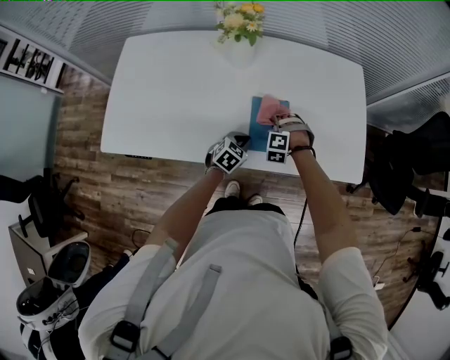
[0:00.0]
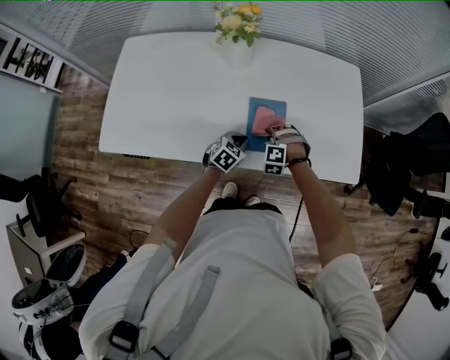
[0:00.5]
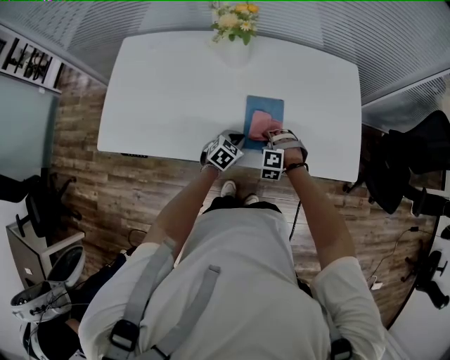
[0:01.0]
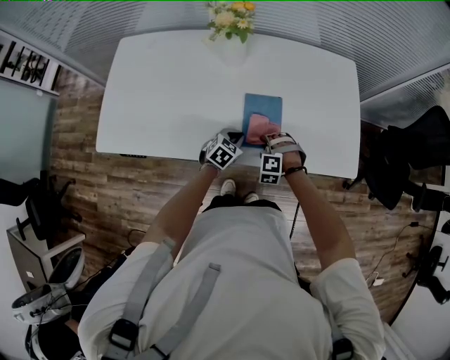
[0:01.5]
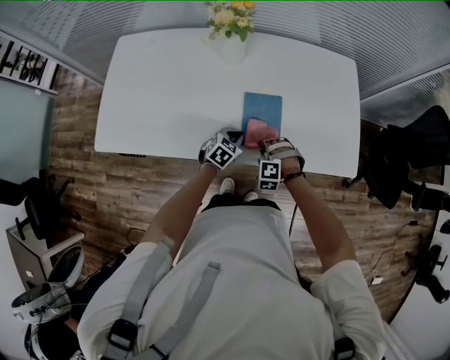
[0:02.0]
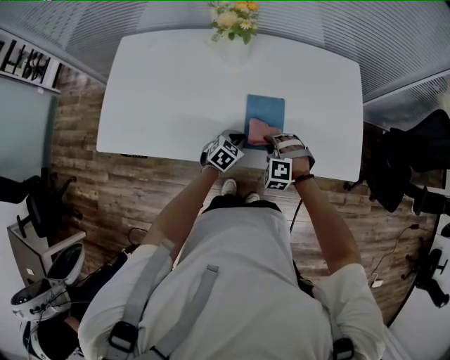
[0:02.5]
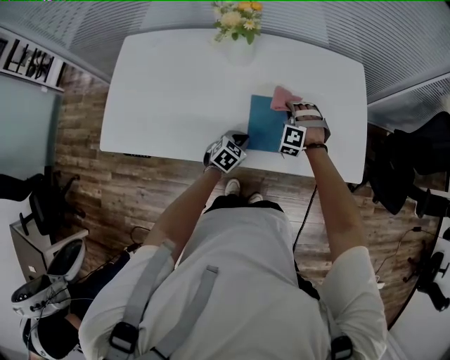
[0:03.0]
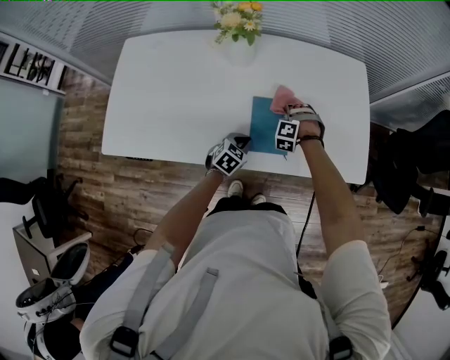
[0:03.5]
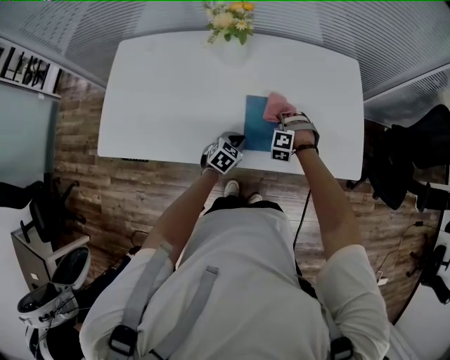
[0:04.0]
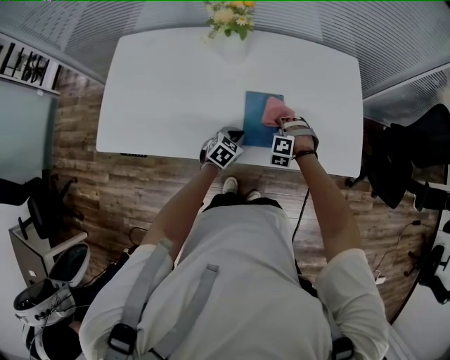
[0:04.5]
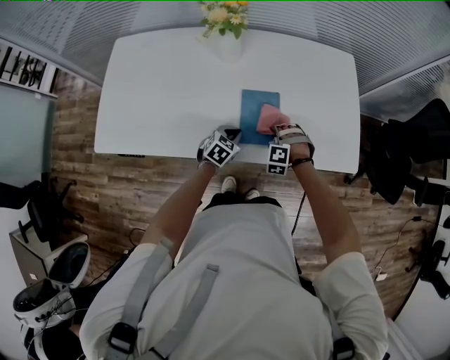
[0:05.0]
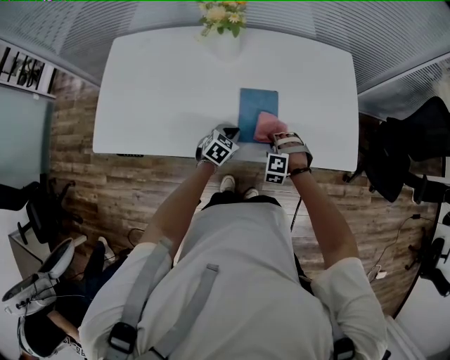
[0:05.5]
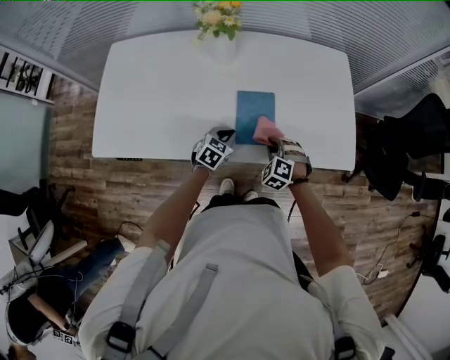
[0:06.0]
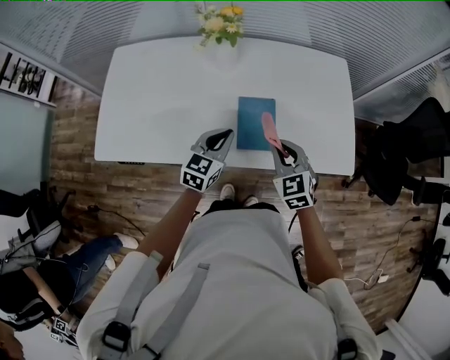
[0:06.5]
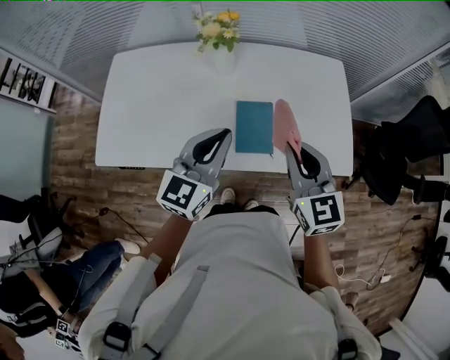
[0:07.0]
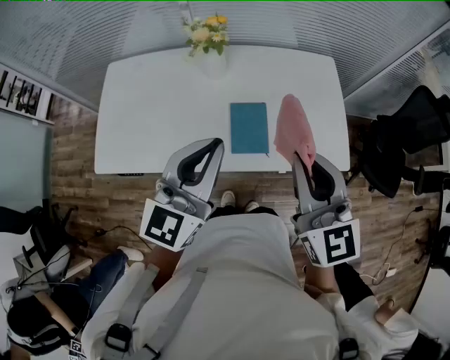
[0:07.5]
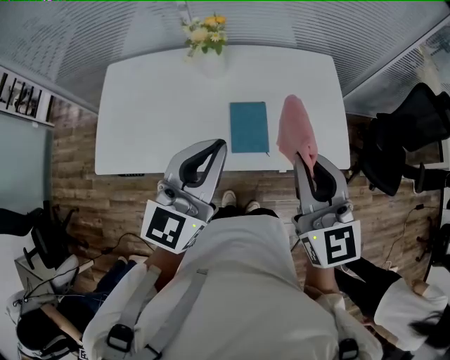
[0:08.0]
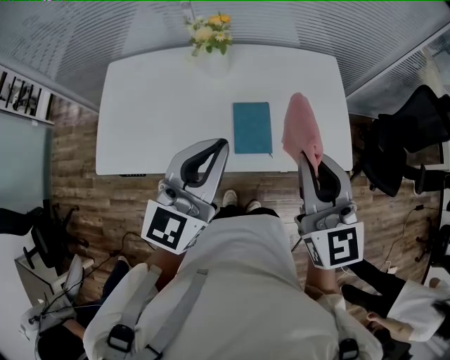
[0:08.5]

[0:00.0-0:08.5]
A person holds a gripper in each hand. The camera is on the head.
0:00.0 to 0:02.0: The right gripper heads backward, covering about 10 cm.
0:02.0 to 0:04.0: The right gripper shifts about 15 cm forward.
0:04.0 to 0:06.5: The left gripper heads upward, covering some 20 cm, and swivels some 30 degrees, while the right gripper moves upward and backward, approximately 25 cm, and twists some 60 degrees clockwise, seen from behind.
0:06.5 to 0:08.5: Both grippers move upward, approximately 25 cm. The right gripper changes its angle by some 30 degrees, while the left gripper rotates roughly 30 degrees.

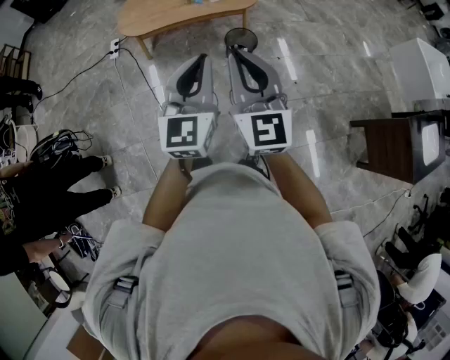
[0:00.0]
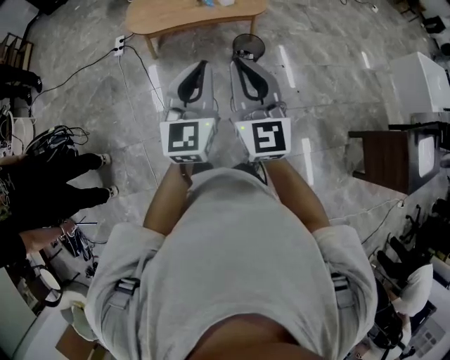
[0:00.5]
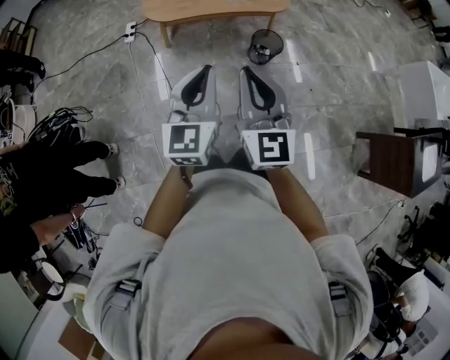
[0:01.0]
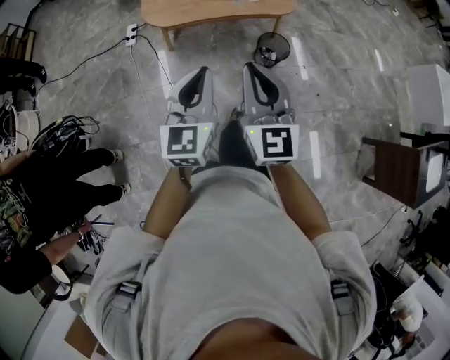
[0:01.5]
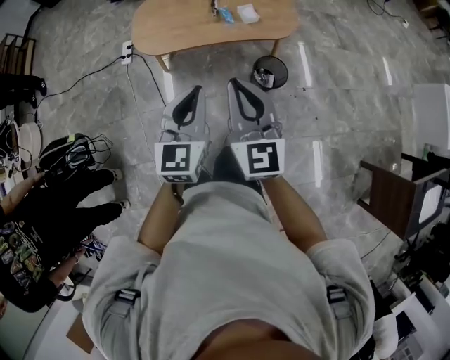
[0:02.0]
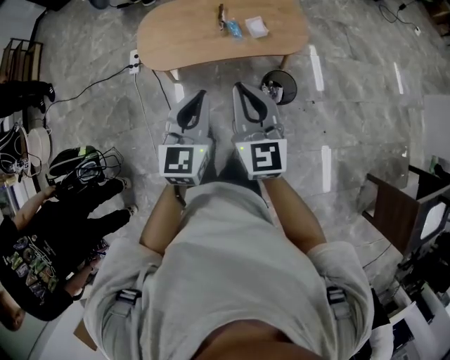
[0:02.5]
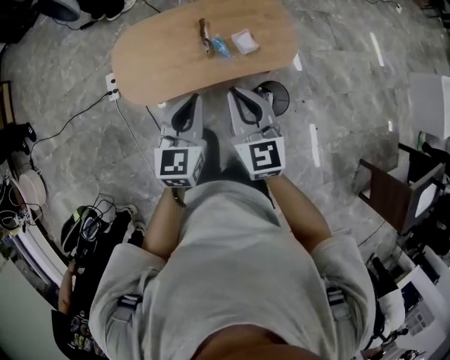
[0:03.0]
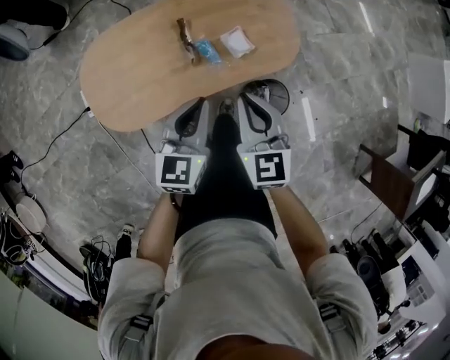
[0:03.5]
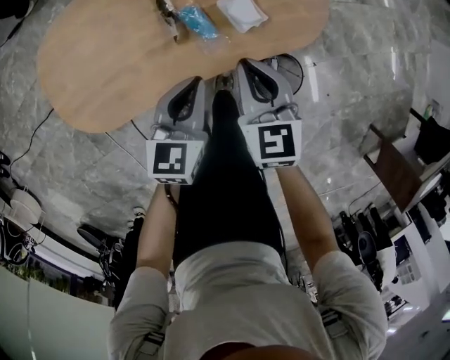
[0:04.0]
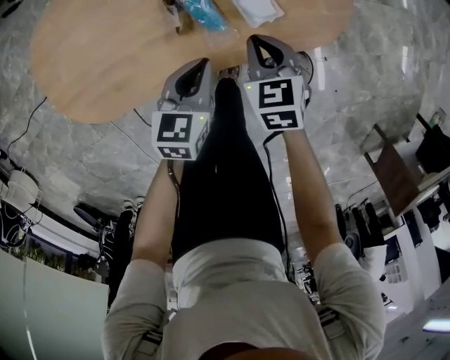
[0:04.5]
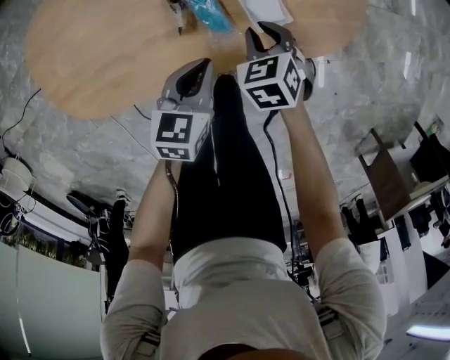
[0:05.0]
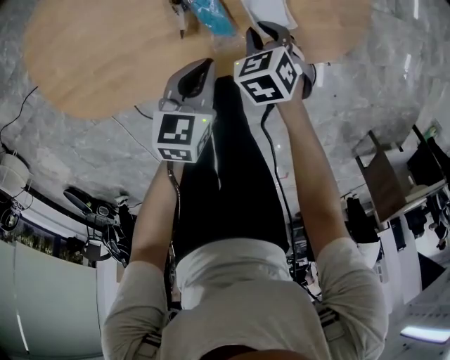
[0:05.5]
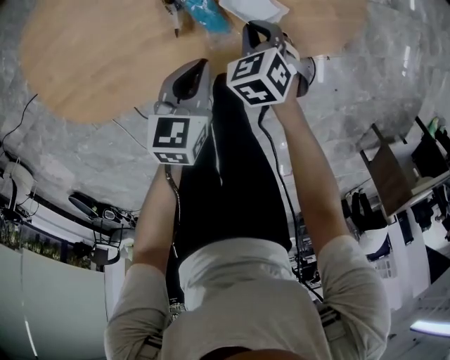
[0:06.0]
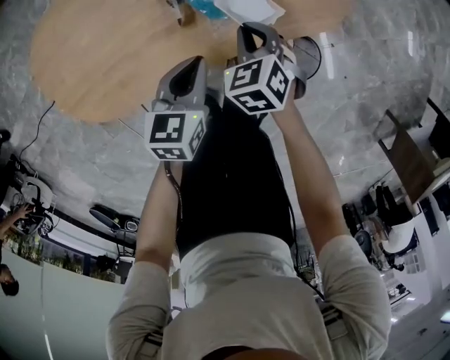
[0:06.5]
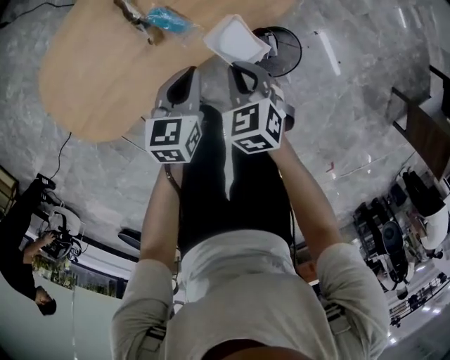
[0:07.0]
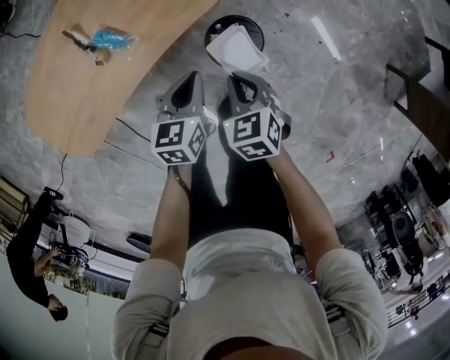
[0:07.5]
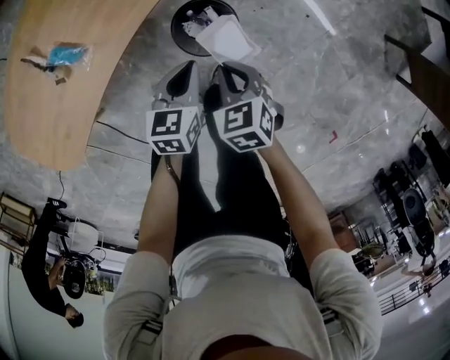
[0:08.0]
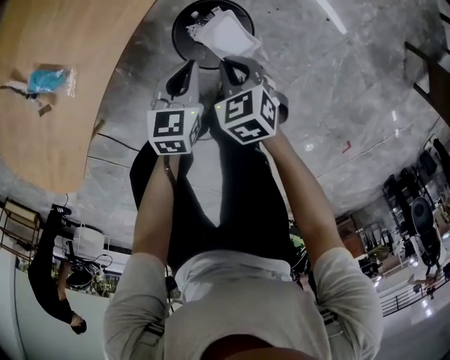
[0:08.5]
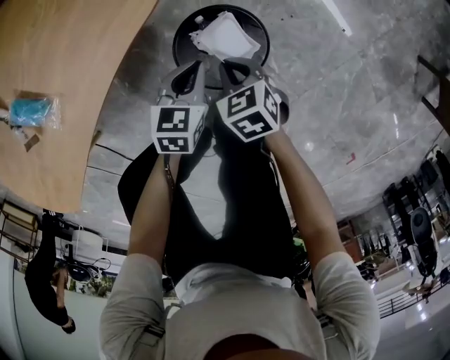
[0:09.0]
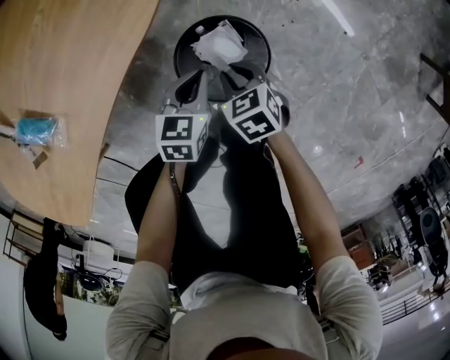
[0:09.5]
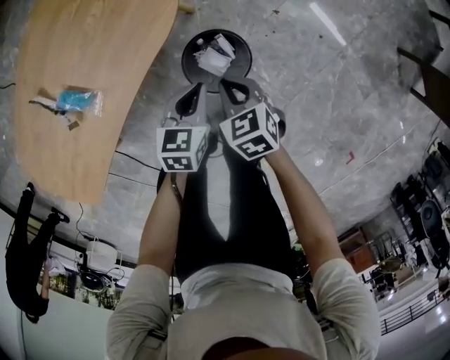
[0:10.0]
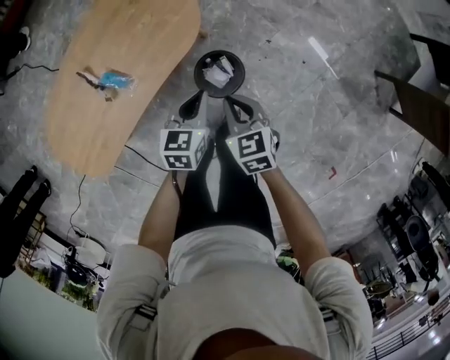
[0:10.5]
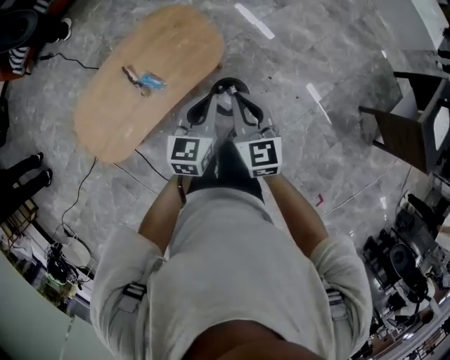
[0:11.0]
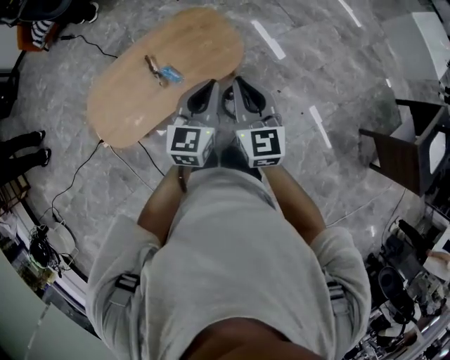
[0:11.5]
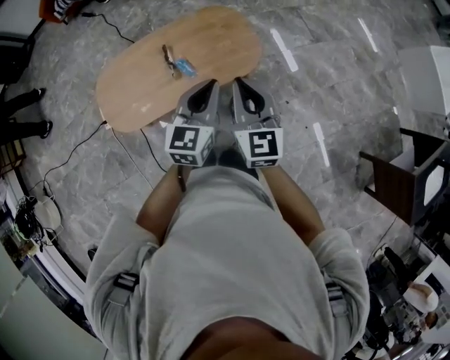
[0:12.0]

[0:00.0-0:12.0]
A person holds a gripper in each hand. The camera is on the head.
0:00.0 to 0:02.0: The right gripper moves forward, about 30 cm. Meanwhile the left gripper moves forward and to the left, approximately 30 cm.
0:02.0 to 0:04.0: The two grippers travel together, forward, approximately 40 cm. The grippers both shift downward by about 35 cm. The right gripper angles its fingers downward, by approximately 30 degrees; the left gripper turns by some 30 degrees.
0:04.0 to 0:06.0: The left gripper travels downward by roughly 10 cm, while the right gripper is displaced downward by roughly 20 cm, and swivels about 40 degrees.
0:06.0 to 0:08.0: The left gripper heads to the right, covering approximately 30 cm, and turns by roughly 30 degrees. Meanwhile the right gripper shifts approximately 35 cm to the right and backward, and changes its angle by roughly 40 degrees.
0:08.0 to 0:10.0: Both grippers travel together forward, about 5 cm. The right gripper goes downward and returns, approximately 25 cm each way, while the left gripper reaches roughly 25 cm downward, then returns.
0:10.0 to 0:12.0: The grippers both shift upward by approximately 50 cm. The right gripper tilts its fingers about 50 degrees upward, while the left gripper rotates approximately 40 degrees.

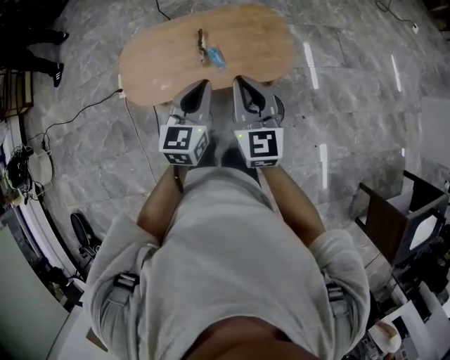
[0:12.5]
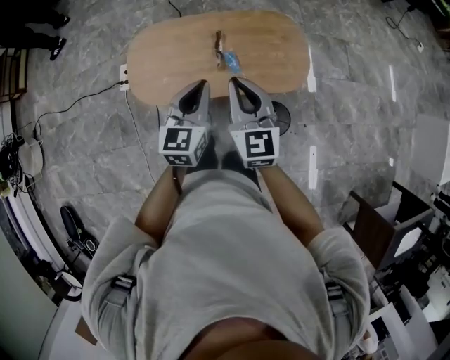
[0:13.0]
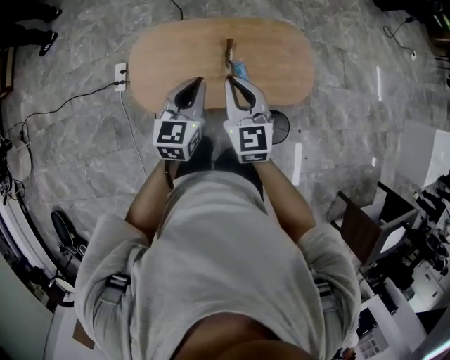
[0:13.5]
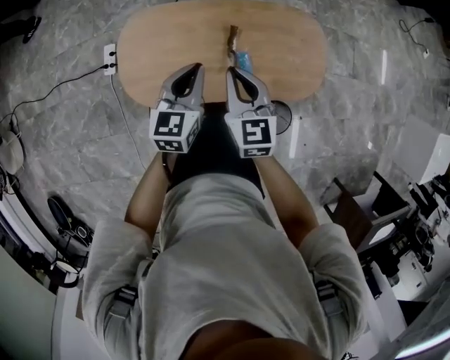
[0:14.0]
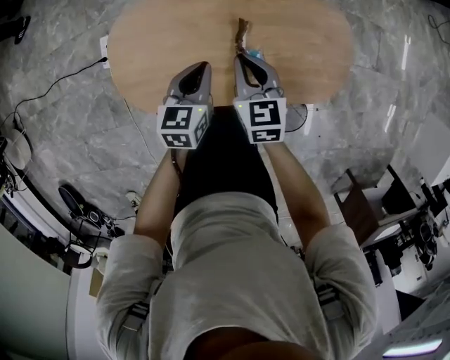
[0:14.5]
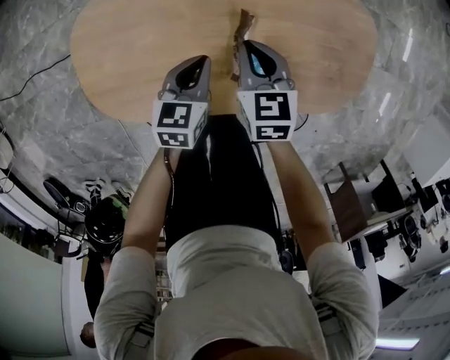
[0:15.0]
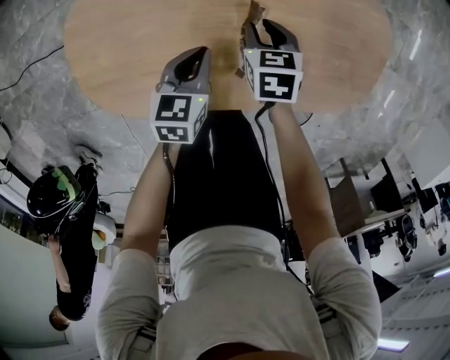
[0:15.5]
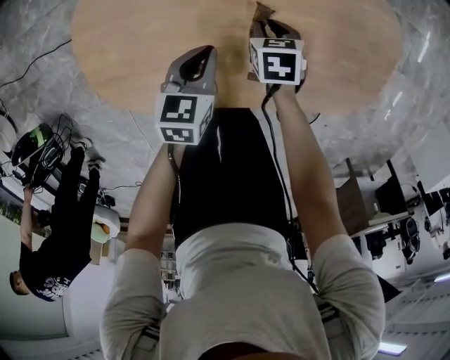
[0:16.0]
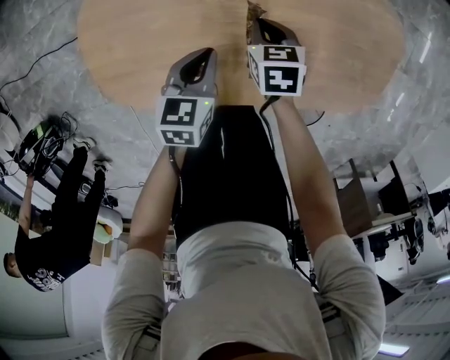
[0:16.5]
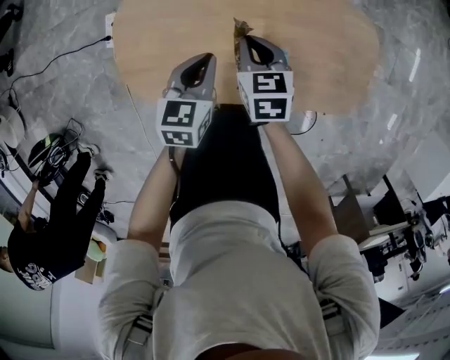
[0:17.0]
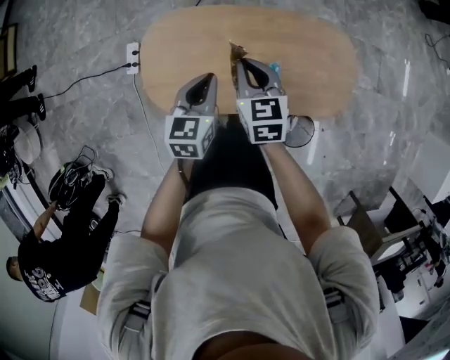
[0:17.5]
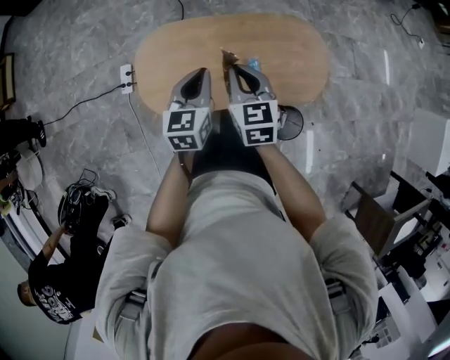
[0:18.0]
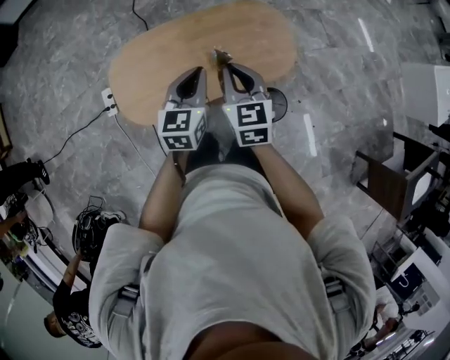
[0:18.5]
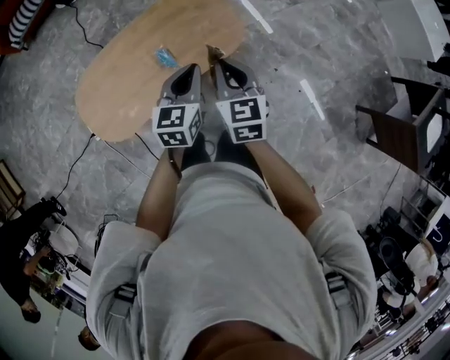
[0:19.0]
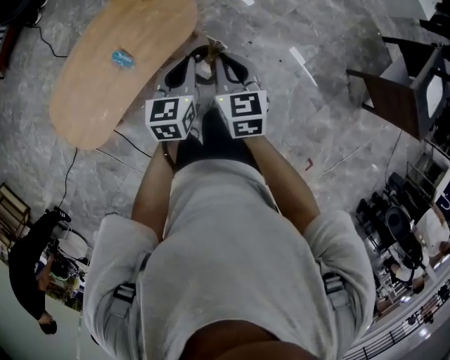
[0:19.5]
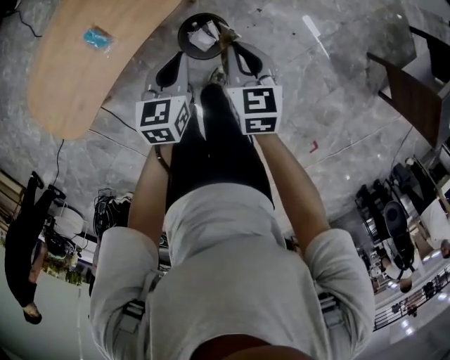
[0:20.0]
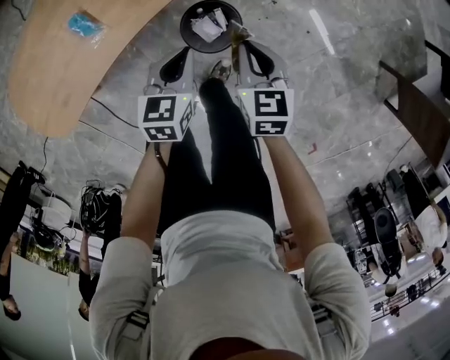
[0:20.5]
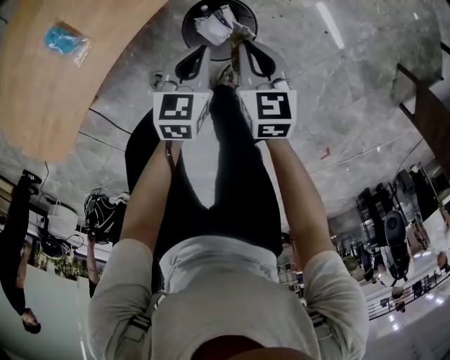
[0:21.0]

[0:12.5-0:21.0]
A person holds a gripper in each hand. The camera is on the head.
0:12.5 to 0:14.5: The grippers both shift forward, downward and to the left by some 40 cm. The left gripper swivels approximately 30 degrees. The right gripper turns by about 30 degrees.
0:14.5 to 0:16.5: The left gripper goes roughly 15 cm downward; the right gripper shifts approximately 25 cm downward, rotates roughly 30 degrees, and opens, then closes again.
0:16.5 to 0:19.0: The two grippers go about 40 cm upward. The right gripper tips its fingers upward by about 40 degrees. The left gripper turns by about 40 degrees.
0:19.0 to 0:21.0: The grippers both shift downward and to the right by approximately 50 cm. The left gripper rotates some 20 degrees. The right gripper turns by about 20 degrees.
